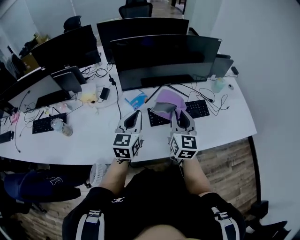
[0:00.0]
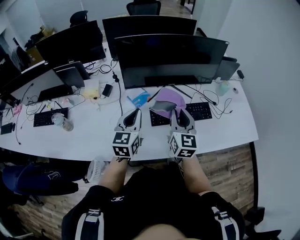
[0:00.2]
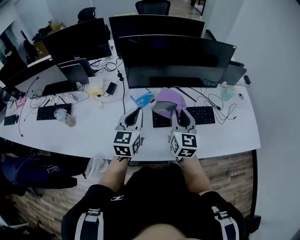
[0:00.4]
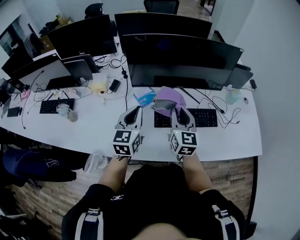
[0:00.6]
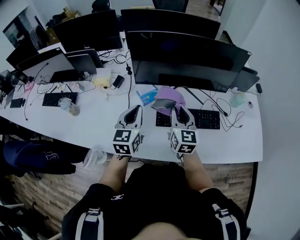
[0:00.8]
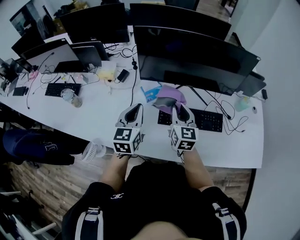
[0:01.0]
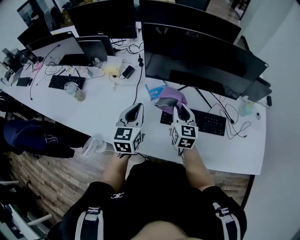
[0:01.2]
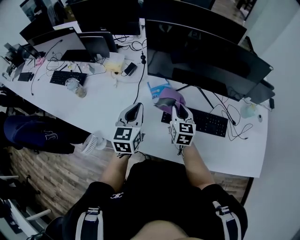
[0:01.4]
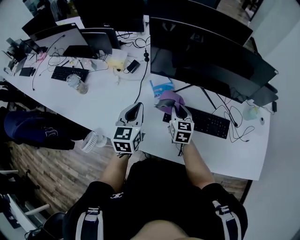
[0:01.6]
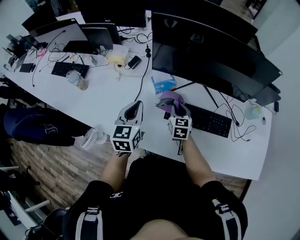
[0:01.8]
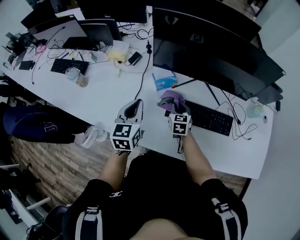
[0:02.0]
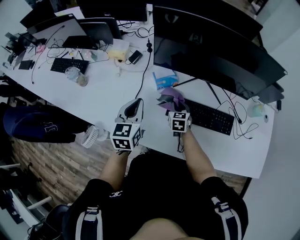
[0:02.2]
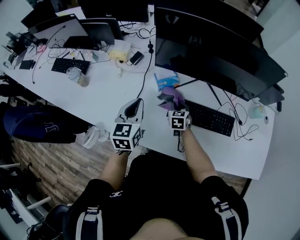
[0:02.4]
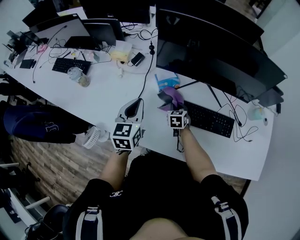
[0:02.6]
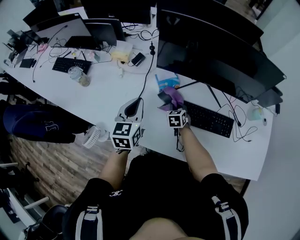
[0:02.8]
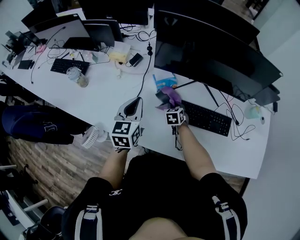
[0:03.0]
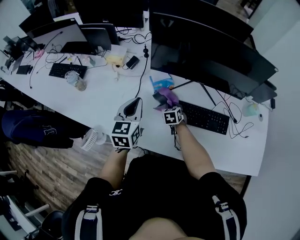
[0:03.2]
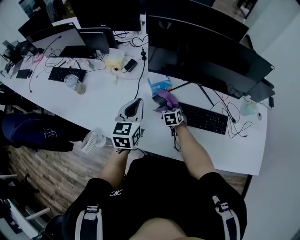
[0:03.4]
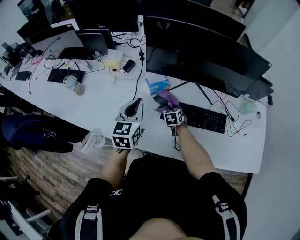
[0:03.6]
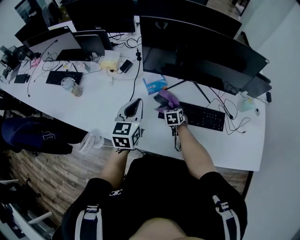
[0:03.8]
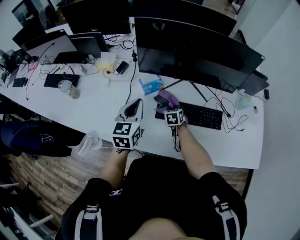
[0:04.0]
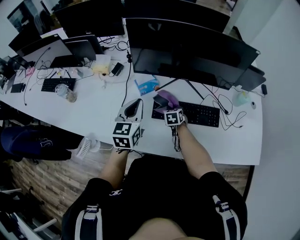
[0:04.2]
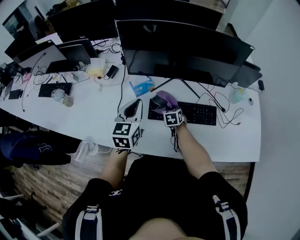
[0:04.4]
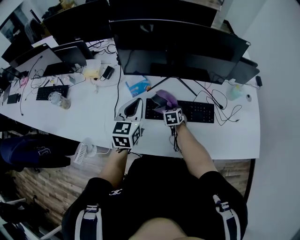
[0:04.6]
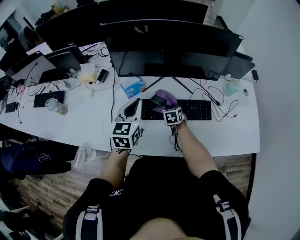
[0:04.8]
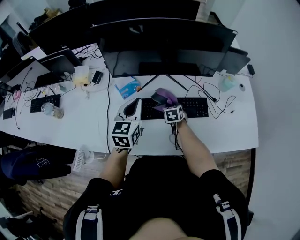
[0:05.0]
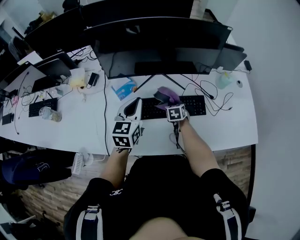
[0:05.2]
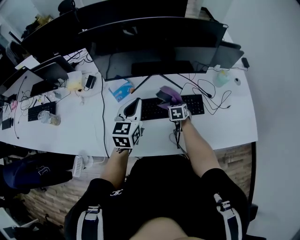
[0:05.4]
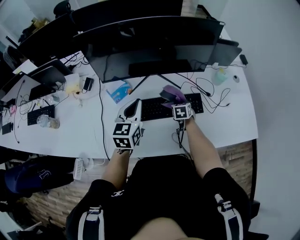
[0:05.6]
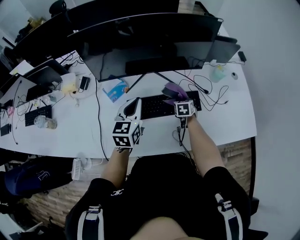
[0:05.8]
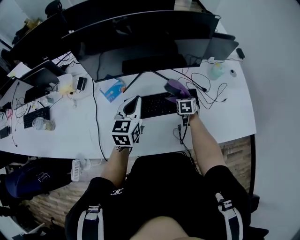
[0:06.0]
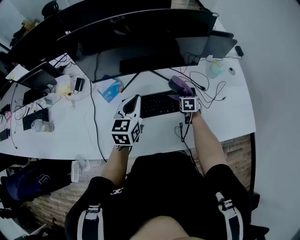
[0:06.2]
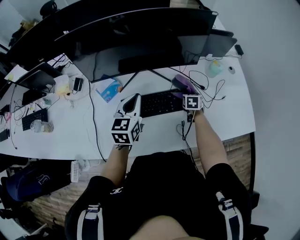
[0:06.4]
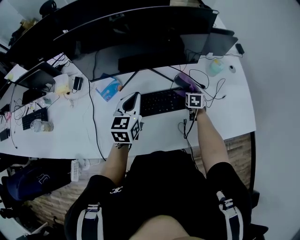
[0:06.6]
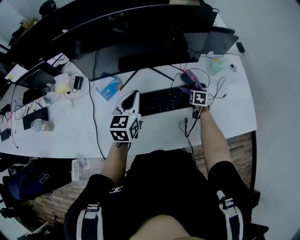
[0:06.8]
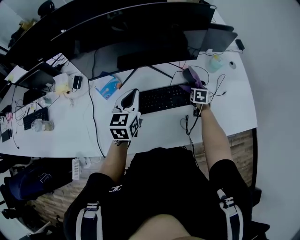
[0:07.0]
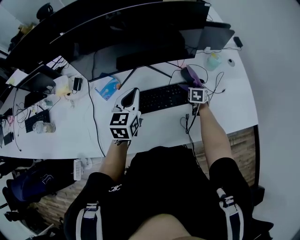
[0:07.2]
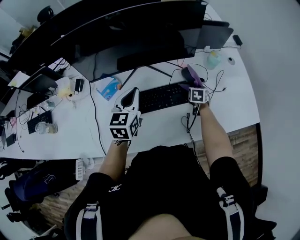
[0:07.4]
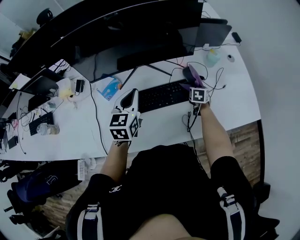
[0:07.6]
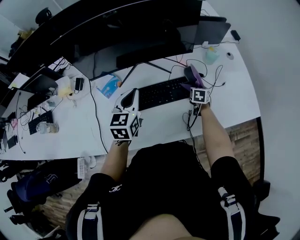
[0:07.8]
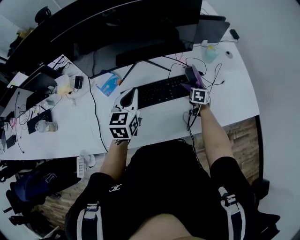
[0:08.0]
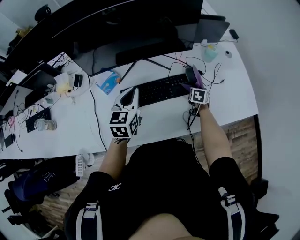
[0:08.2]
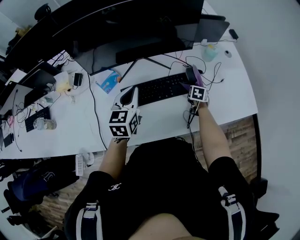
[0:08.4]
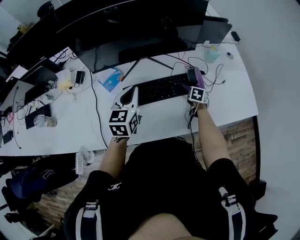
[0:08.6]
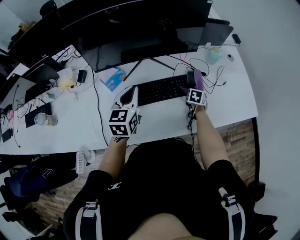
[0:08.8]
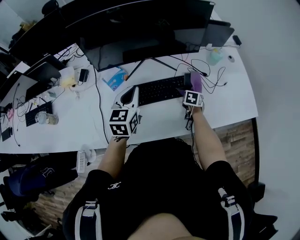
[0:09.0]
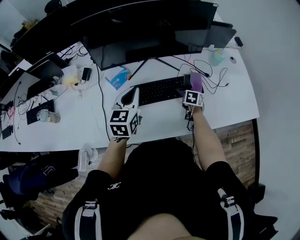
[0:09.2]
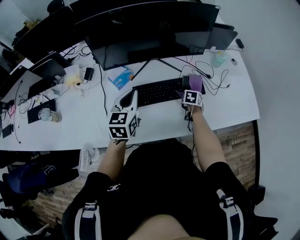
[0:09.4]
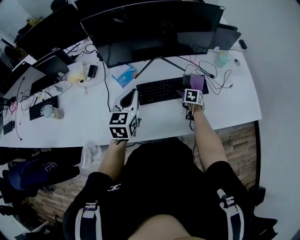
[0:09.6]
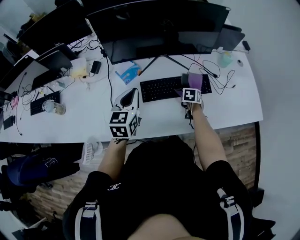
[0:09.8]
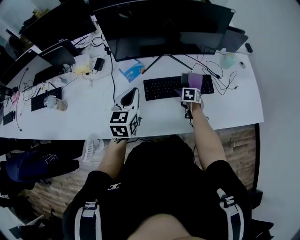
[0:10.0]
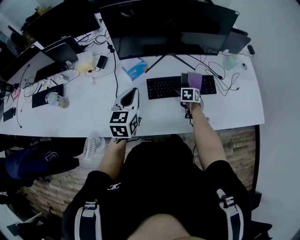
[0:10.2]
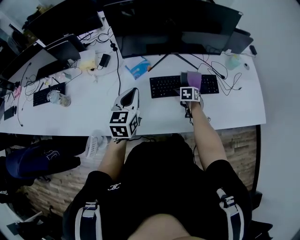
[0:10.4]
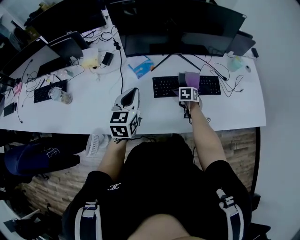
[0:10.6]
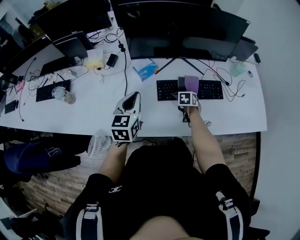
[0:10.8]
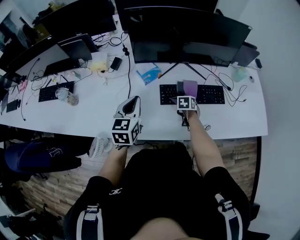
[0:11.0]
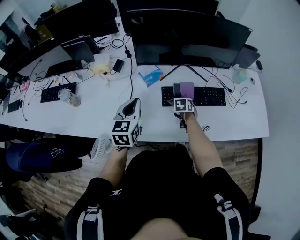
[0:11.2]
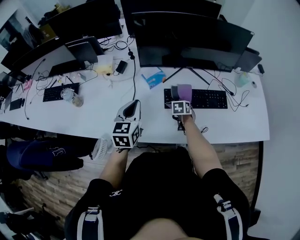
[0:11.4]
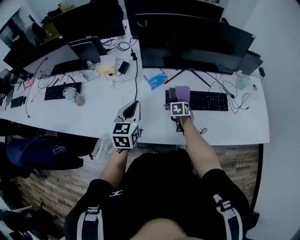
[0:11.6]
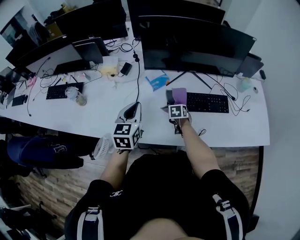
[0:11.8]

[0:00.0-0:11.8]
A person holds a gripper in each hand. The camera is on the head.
0:00.0 to 0:01.4: The left gripper moves some 5 cm, and swivels about 30 degrees. Meanwhile the right gripper moves forward and downward, some 20 cm, and changes its angle by roughly 30 degrees.
0:01.4 to 0:03.0: The right gripper is displaced downward by roughly 20 cm, and changes its angle by about 30 degrees.
0:03.0 to 0:04.4: The two grippers go roughly 10 cm to the right.
0:04.4 to 0:06.0: The left gripper moves to the right and forward, roughly 15 cm; the right gripper goes some 25 cm to the right, and swivels roughly 20 degrees.
0:06.0 to 0:07.4: The right gripper shifts about 10 cm to the right.
0:07.4 to 0:08.8: Both grippers travel together backward, about 10 cm.
0:08.8 to 0:10.4: Both grippers travel together to the left and backward, about 20 cm.
0:10.4 to 0:11.8: The left gripper heads to the left and backward, covering approximately 10 cm; the right gripper goes approximately 15 cm to the left.

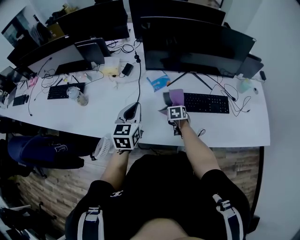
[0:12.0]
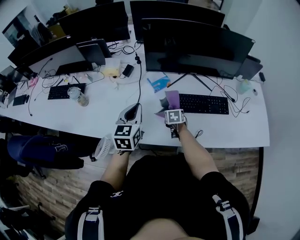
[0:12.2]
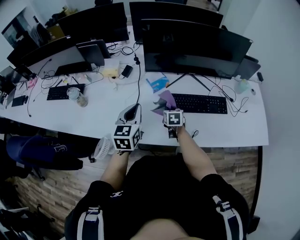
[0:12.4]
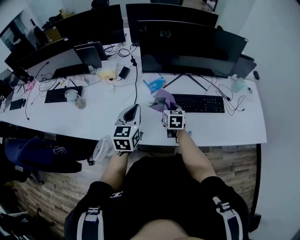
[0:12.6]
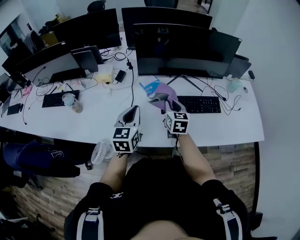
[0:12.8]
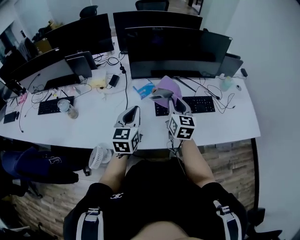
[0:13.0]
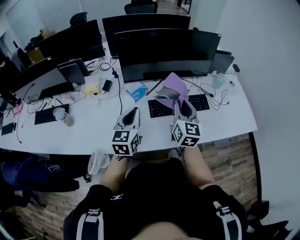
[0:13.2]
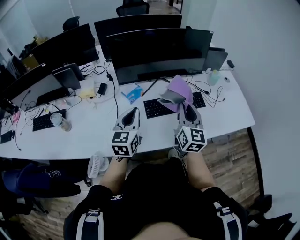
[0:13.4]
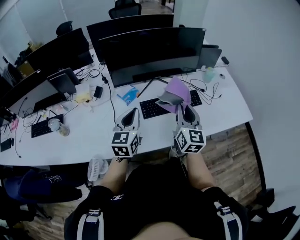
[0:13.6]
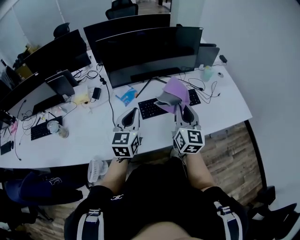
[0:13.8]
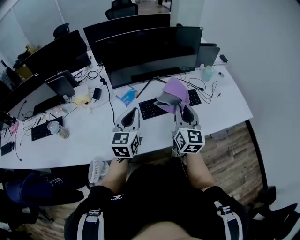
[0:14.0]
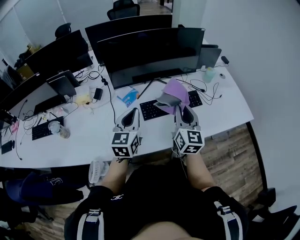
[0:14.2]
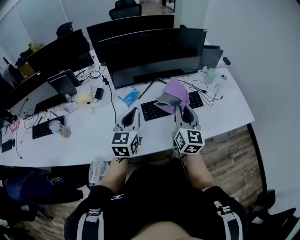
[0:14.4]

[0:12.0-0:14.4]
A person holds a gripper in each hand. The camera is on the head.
0:12.0 to 0:13.2: The left gripper travels to the right by approximately 5 cm; the right gripper heads upward, covering roughly 30 cm, and tips its fingers upward by some 60 degrees.
0:13.2 to 0:14.4: The right gripper shifts by roughly 5 cm.

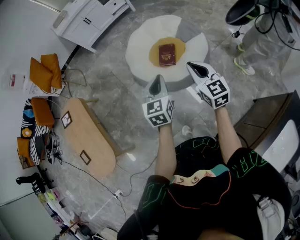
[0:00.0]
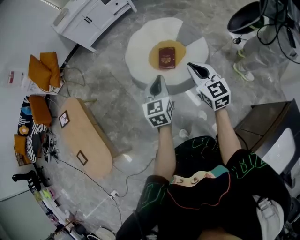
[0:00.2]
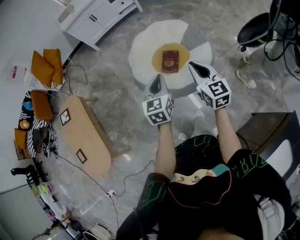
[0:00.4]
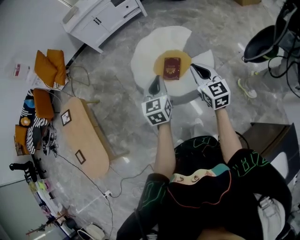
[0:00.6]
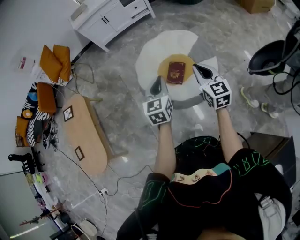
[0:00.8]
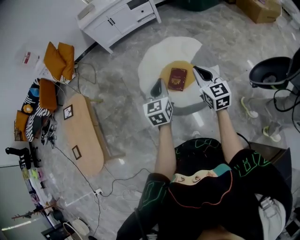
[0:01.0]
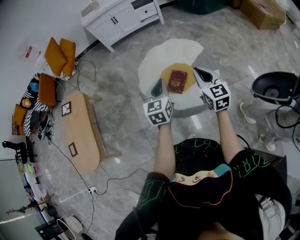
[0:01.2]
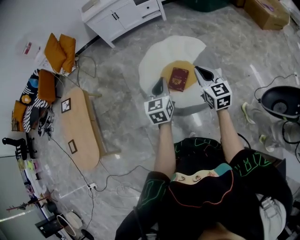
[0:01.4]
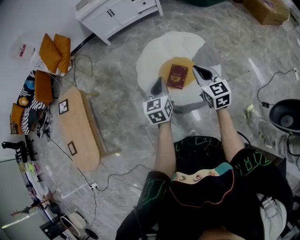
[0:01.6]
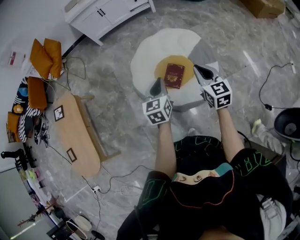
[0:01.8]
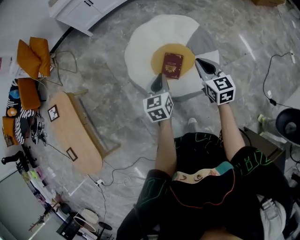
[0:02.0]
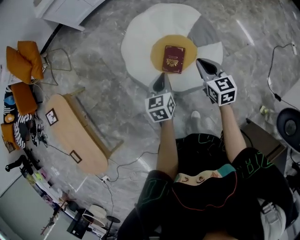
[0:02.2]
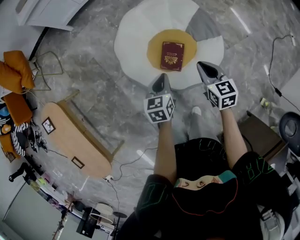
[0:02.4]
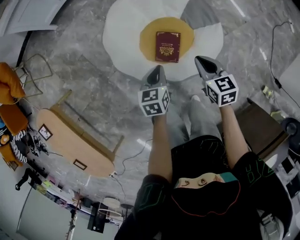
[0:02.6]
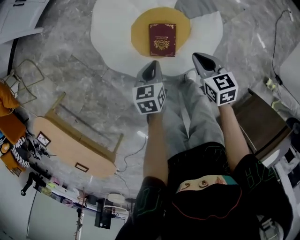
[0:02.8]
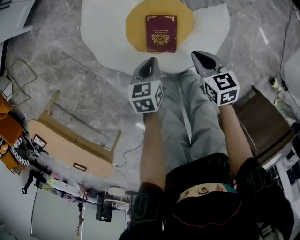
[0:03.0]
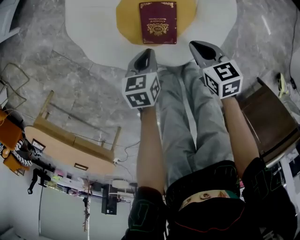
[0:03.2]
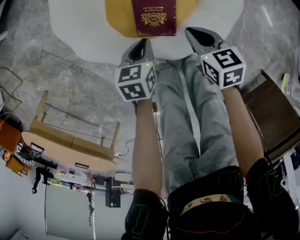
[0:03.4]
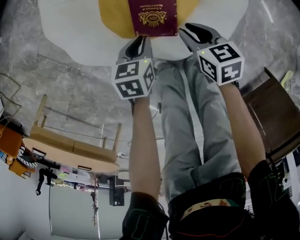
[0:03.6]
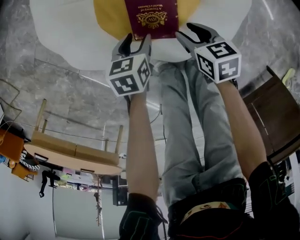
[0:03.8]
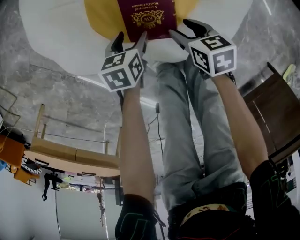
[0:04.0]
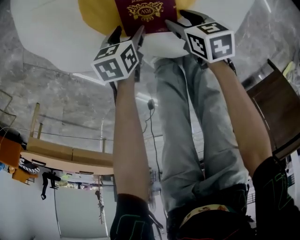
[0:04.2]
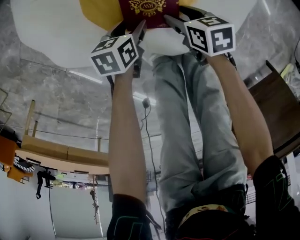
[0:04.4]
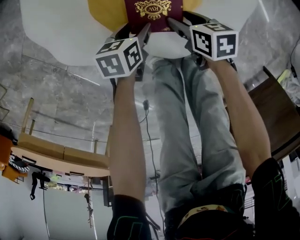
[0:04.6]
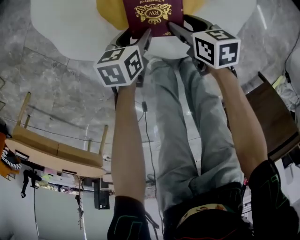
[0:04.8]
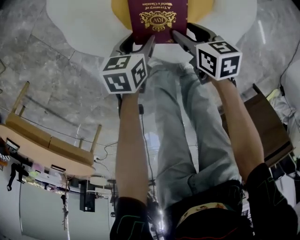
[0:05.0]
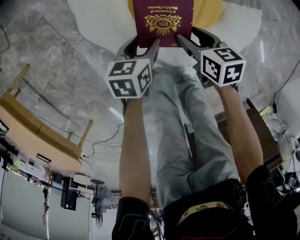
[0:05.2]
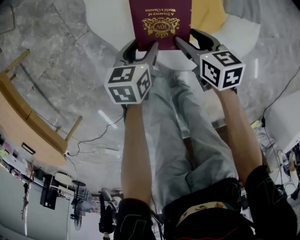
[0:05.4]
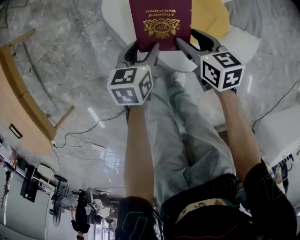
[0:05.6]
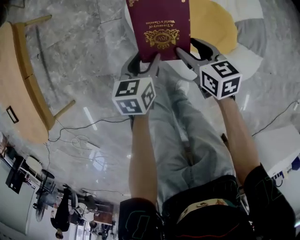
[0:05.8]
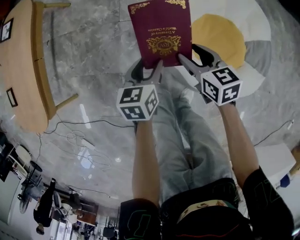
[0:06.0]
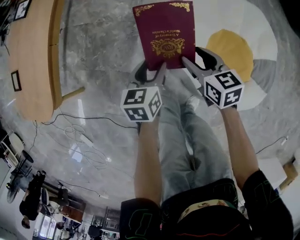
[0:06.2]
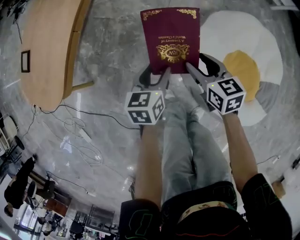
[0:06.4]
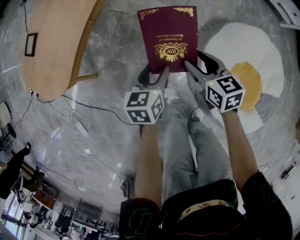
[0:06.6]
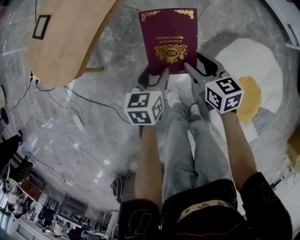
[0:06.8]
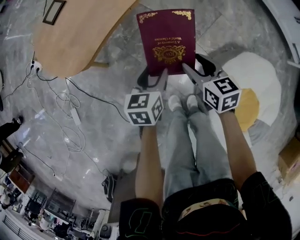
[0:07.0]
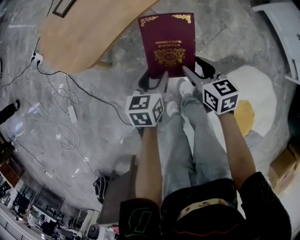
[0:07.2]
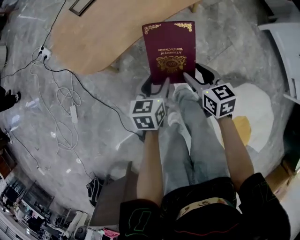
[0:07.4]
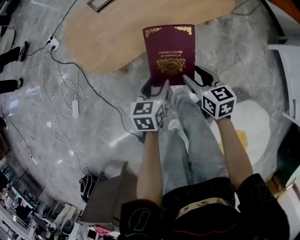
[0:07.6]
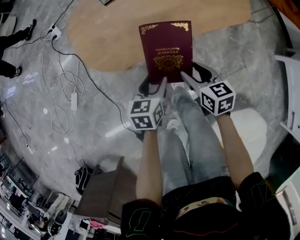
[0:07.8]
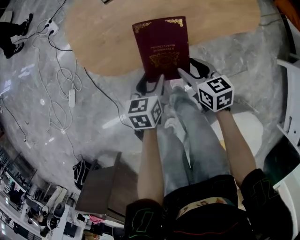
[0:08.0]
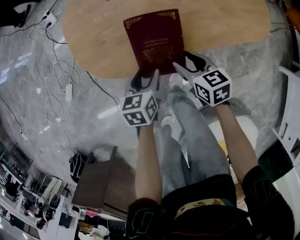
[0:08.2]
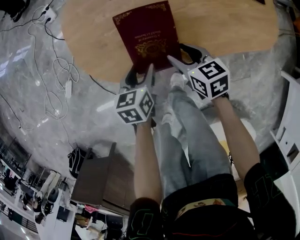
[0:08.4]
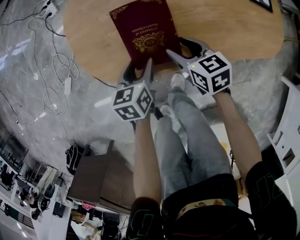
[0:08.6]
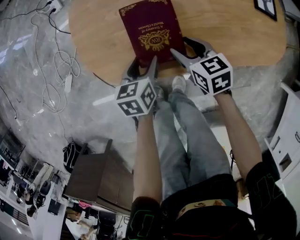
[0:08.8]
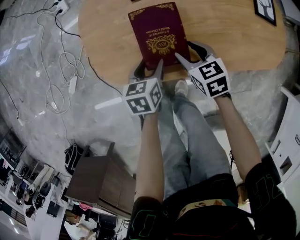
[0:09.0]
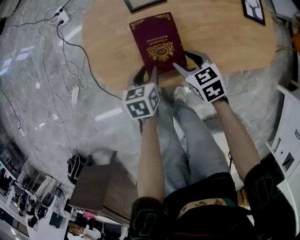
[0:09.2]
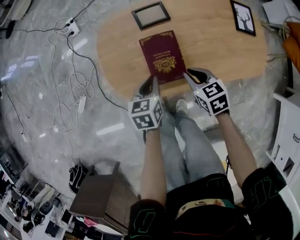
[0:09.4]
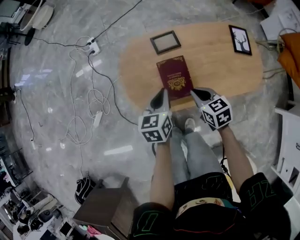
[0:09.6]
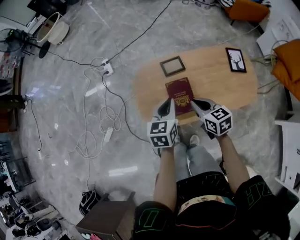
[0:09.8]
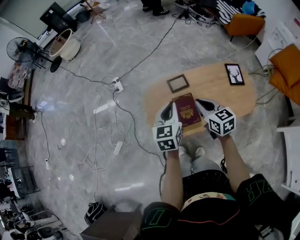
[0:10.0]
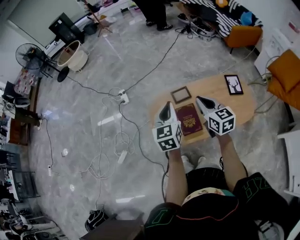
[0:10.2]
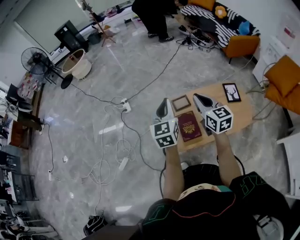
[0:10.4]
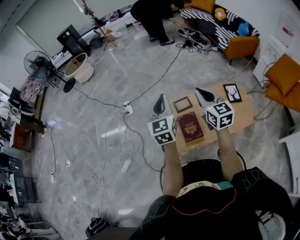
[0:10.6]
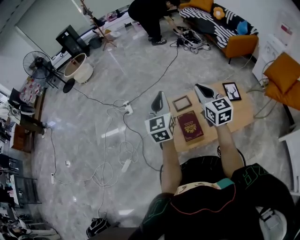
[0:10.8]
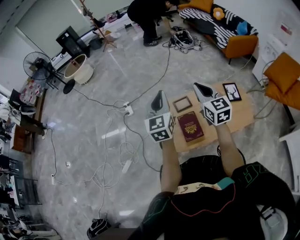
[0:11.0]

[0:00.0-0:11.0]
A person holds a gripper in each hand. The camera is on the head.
0:00.0 to 0:01.6: Both grippers travel together forward, some 20 cm.
0:01.6 to 0:03.2: The two grippers go approximately 40 cm downward. The right gripper angles its fingers downward, by approximately 30 degrees, while the left gripper points its fingers approximately 30 degrees further downward.
0:03.2 to 0:04.8: The grippers both shift downward by about 15 cm. The right gripper opens up, while the left gripper opens up.
0:04.8 to 0:06.2: The left gripper changes place by approximately 40 cm, and turns by approximately 60 degrees. Meanwhile the right gripper ends up about 40 cm from where it was, and twists roughly 50 degrees counterclockwise, seen from behind.
0:06.2 to 0:07.8: Both grippers are carried about 50 cm. The right gripper rotates approximately 50 degrees; the left gripper changes its angle by about 50 degrees.
0:07.8 to 0:09.4: Both grippers move forward, roughly 20 cm. The left gripper closes, while the right gripper rotates about 20 degrees, and closes.
0:09.4 to 0:11.0: Both grippers move upward, about 40 cm. The left gripper angles its fingers upward, by some 40 degrees; the right gripper points its fingers some 40 degrees further upward.
